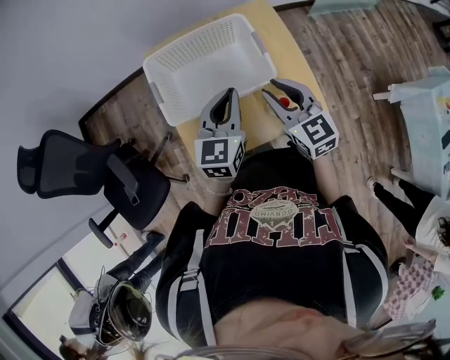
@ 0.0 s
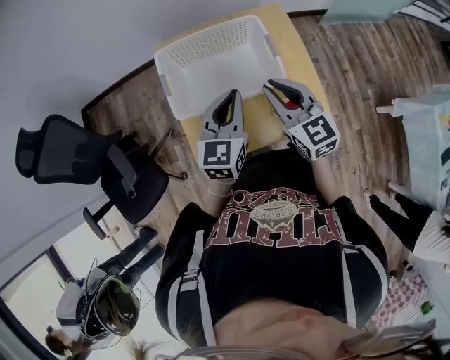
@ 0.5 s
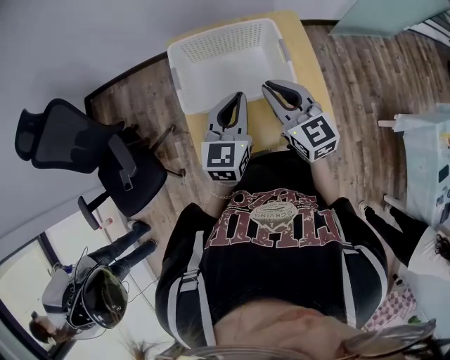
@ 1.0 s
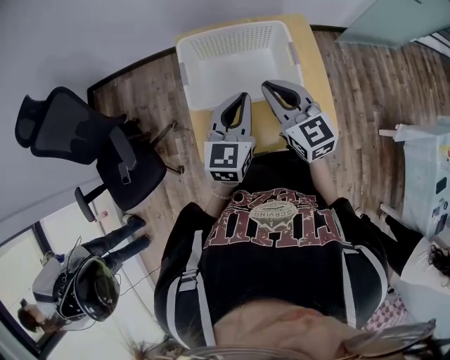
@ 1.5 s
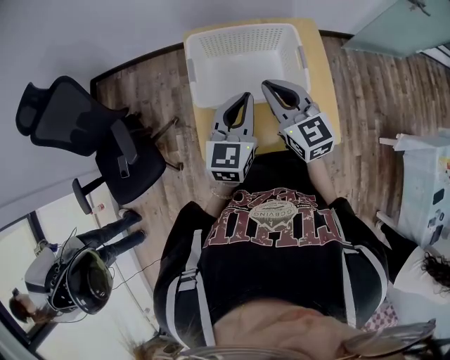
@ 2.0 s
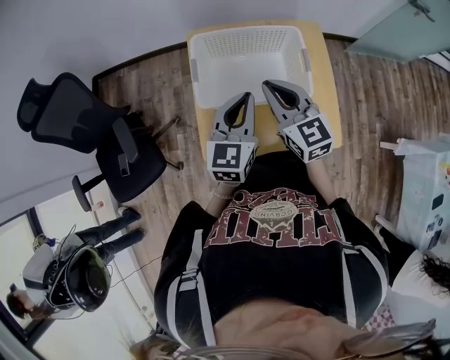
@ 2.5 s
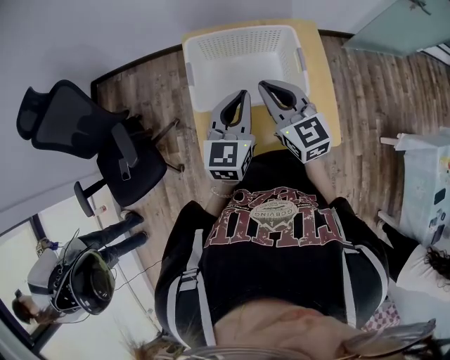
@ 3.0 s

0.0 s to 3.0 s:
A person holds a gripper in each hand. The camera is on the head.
0.0 to 1.5 s: The left gripper shifts by roughly 5 cm, while the right gripper heads to the left, covering some 10 cm, and closes its fingers.
1.5 to 3.0 s: There are only small adjustments of the grippers.

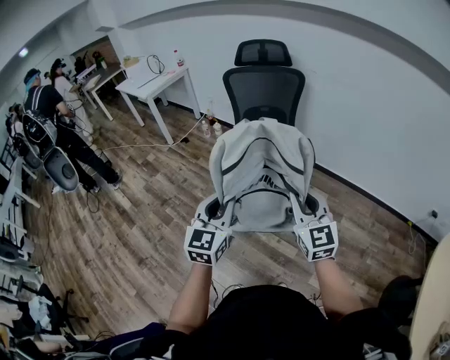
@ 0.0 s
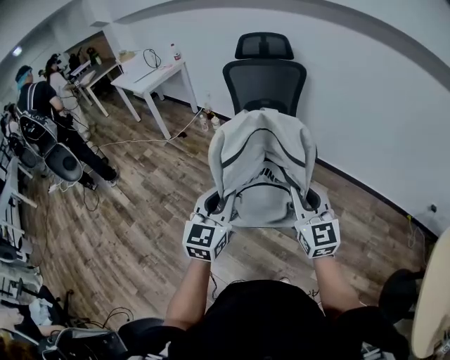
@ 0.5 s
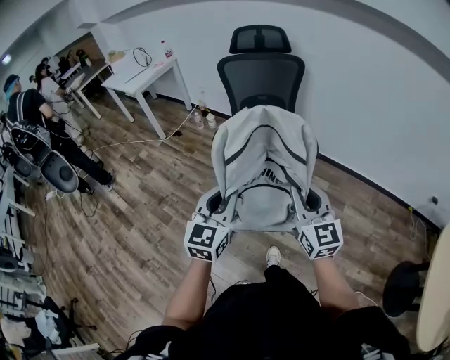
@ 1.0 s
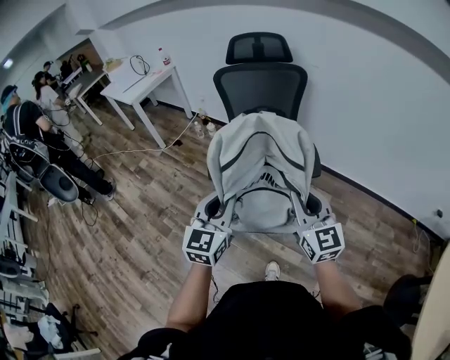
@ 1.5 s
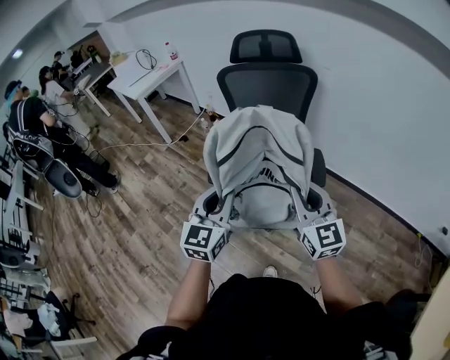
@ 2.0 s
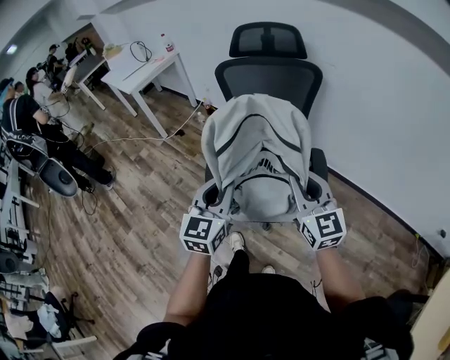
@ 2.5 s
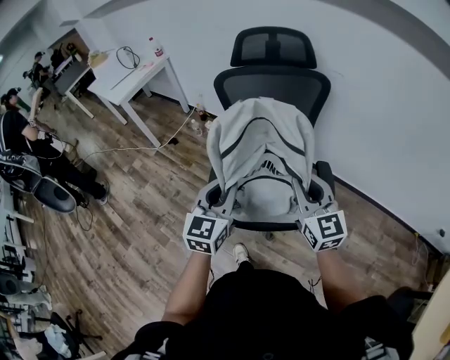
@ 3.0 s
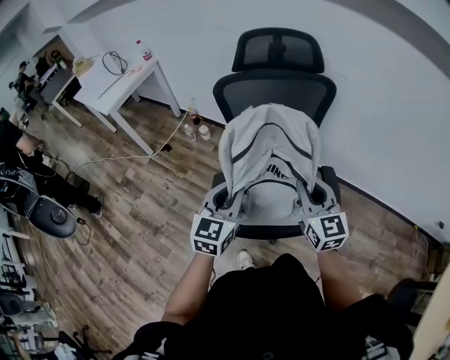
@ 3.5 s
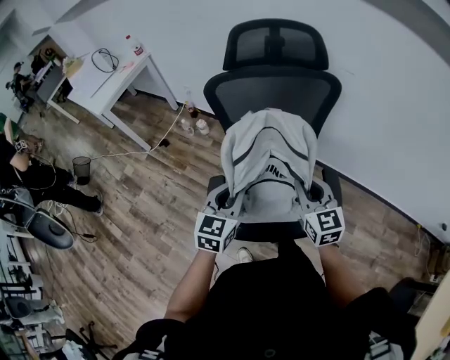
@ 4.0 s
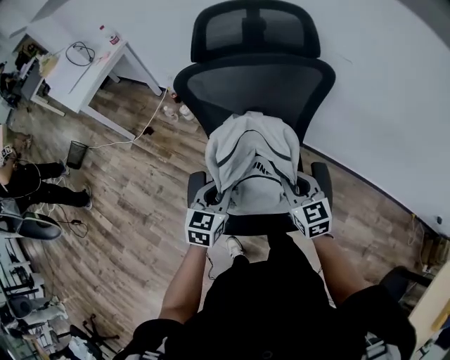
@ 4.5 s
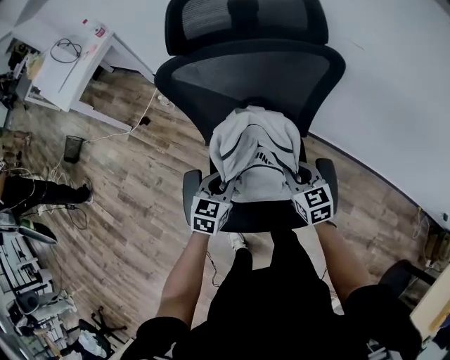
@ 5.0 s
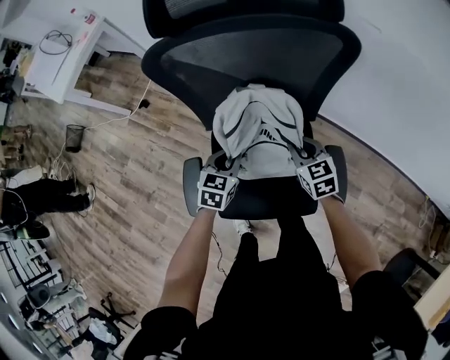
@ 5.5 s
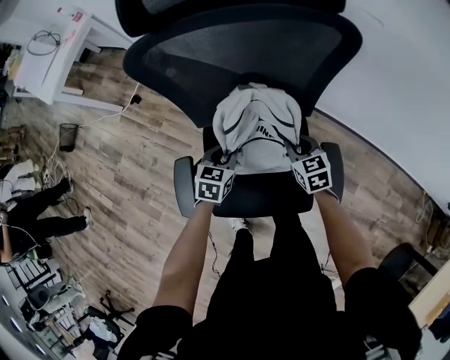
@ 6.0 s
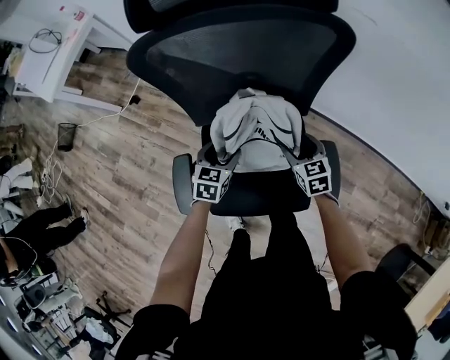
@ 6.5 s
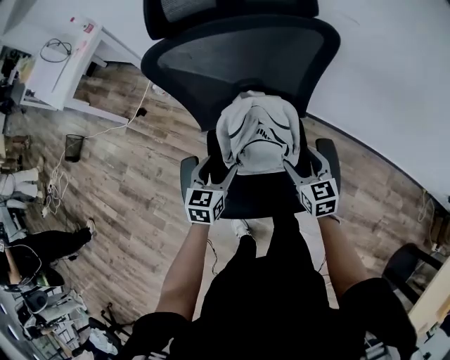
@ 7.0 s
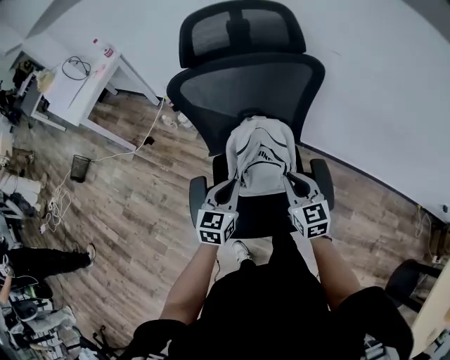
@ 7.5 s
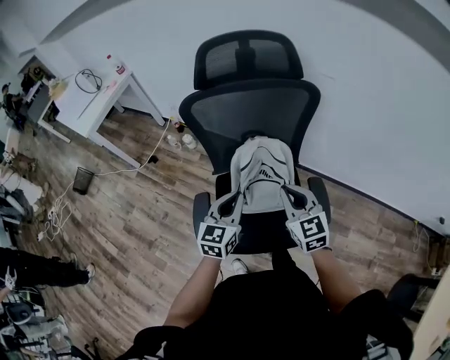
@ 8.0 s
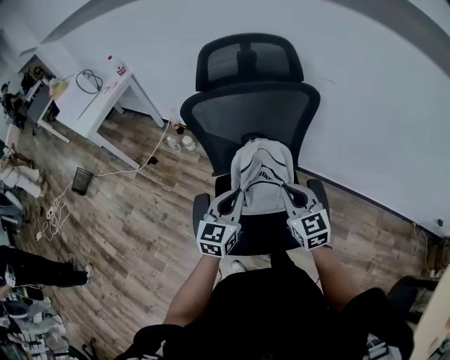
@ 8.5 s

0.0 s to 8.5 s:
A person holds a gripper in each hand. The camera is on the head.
0.0 to 2.0 s: Both grippers travel together forward, approximately 20 cm.
2.0 to 4.0 s: The grippers both shift forward by approximately 30 cm.
4.0 to 6.5 s: Both grippers travel together downward and forward, roughly 30 cm. The right gripper turns by roughly 30 degrees, and opens. The left gripper changes its angle by approximately 20 degrees, and opens up.
6.5 to 8.5 s: Both grippers travel together upward, roughly 25 cm. The right gripper changes its angle by some 20 degrees, and closes its fingers; the left gripper rotates some 30 degrees, and closes up.

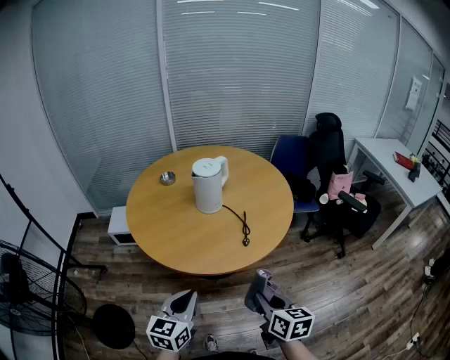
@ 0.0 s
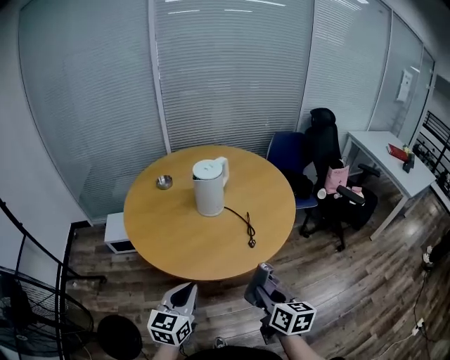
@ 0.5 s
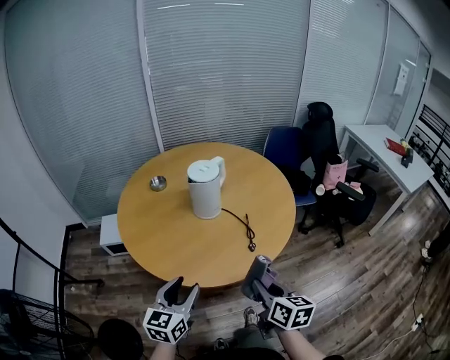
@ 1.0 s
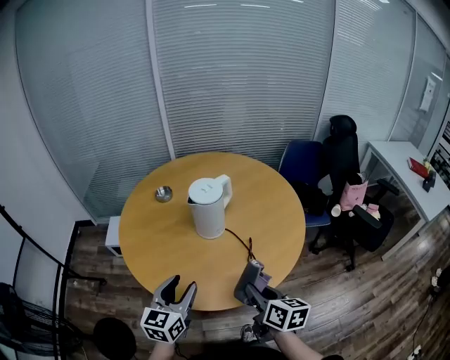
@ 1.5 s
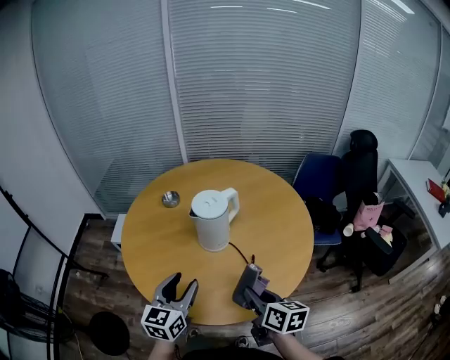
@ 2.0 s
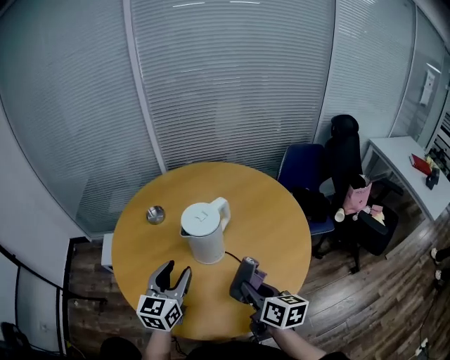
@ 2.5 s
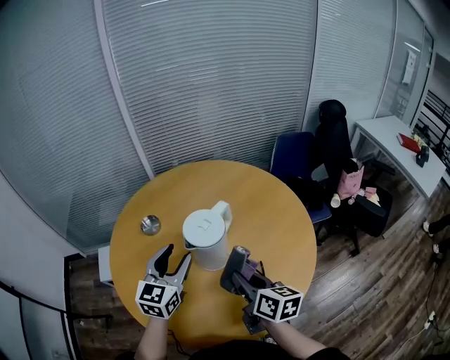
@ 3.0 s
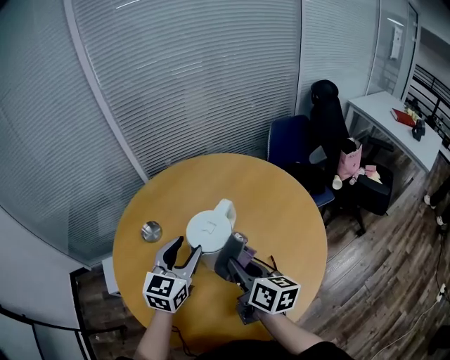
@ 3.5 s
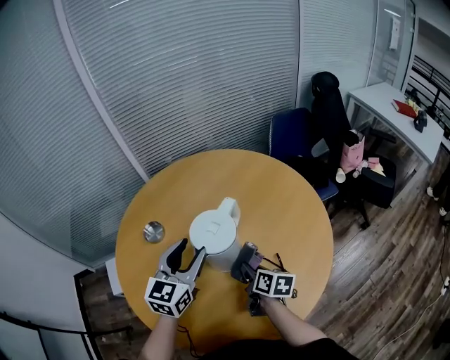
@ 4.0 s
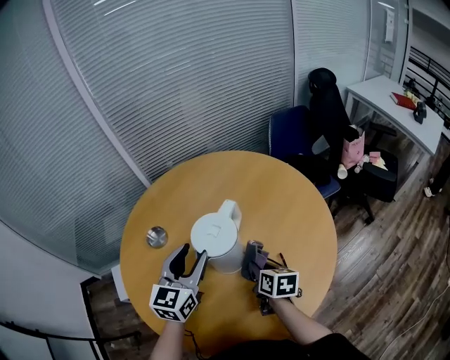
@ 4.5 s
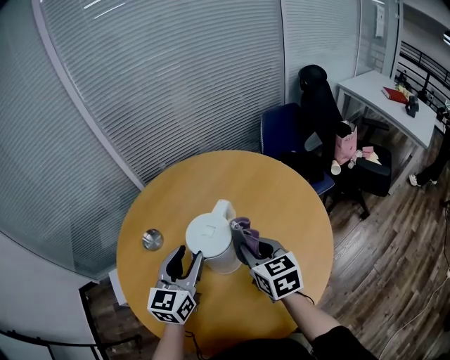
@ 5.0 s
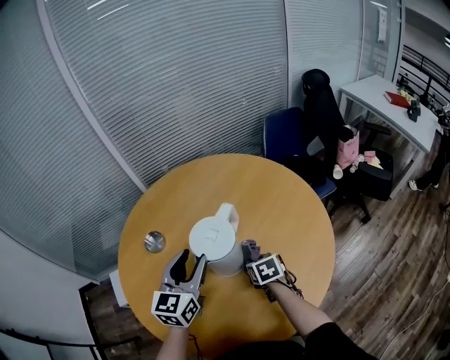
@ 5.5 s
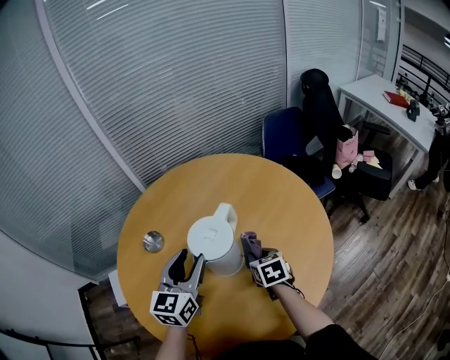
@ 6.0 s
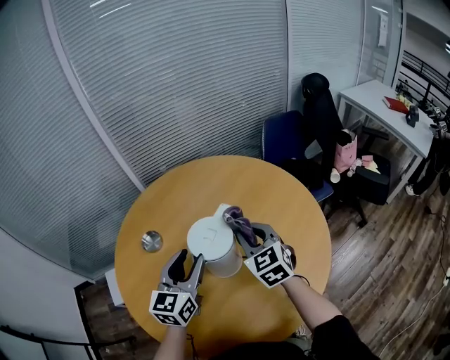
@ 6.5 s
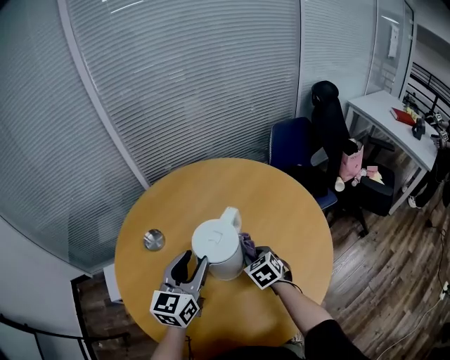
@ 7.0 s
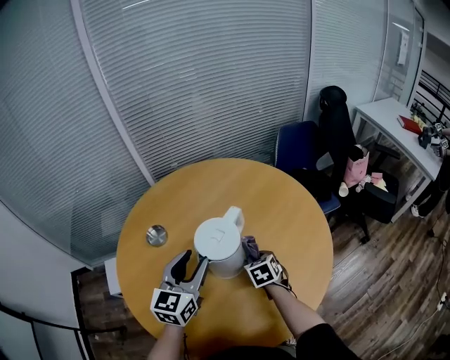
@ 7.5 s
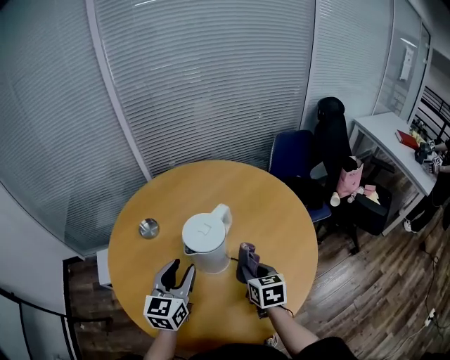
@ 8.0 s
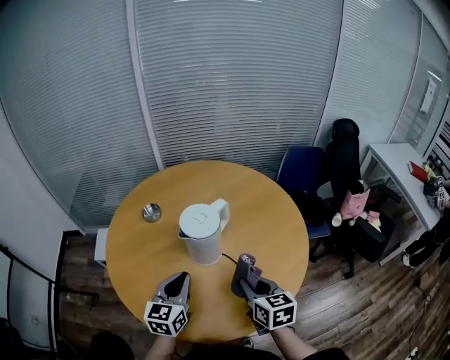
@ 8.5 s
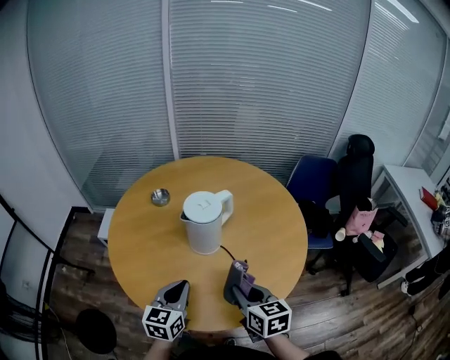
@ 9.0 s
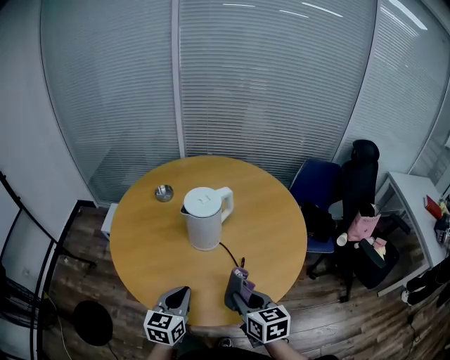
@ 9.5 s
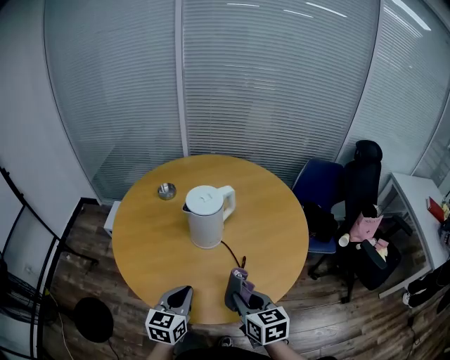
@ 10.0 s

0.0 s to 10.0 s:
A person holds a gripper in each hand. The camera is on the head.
0.0 to 2.0 s: Both grippers move forward, some 25 cm. The left gripper opens.
2.0 to 4.0 s: The left gripper shifts approximately 25 cm forward, and swivels about 30 degrees, while the right gripper moves forward, downward and to the left, about 25 cm, and turns by some 30 degrees.
4.0 to 6.0 s: The right gripper moves up and down over roughly 20 cm, changing direction 2 times, and swivels some 40 degrees.
6.0 to 8.0 s: The right gripper moves up and down over roughly 20 cm, changing direction 2 times. Meanwhile the left gripper travels backward by roughly 5 cm.
8.0 to 10.0 s: The two grippers go approximately 20 cm backward. The left gripper rotates roughly 20 degrees, and closes up; the right gripper swivels some 30 degrees.

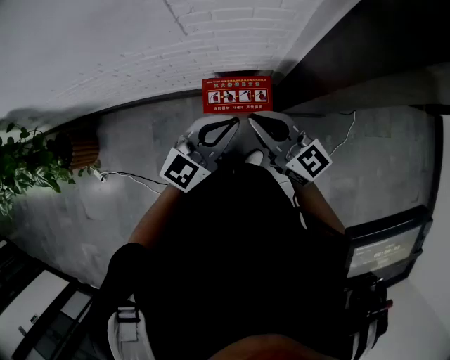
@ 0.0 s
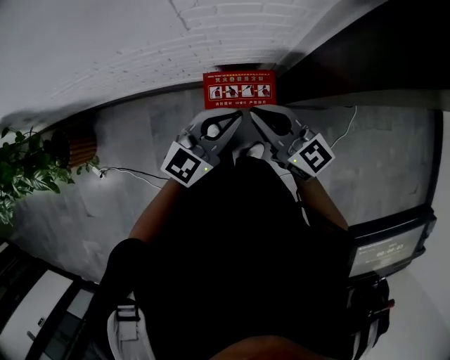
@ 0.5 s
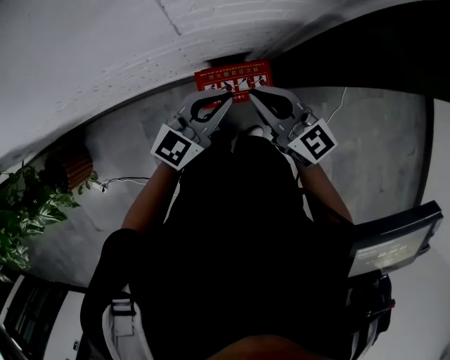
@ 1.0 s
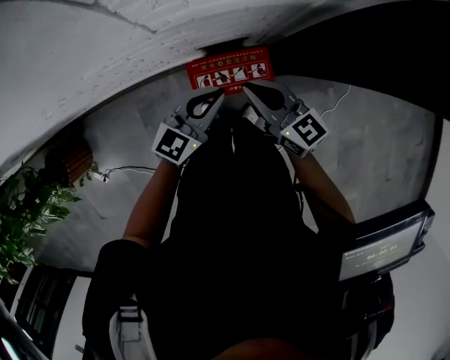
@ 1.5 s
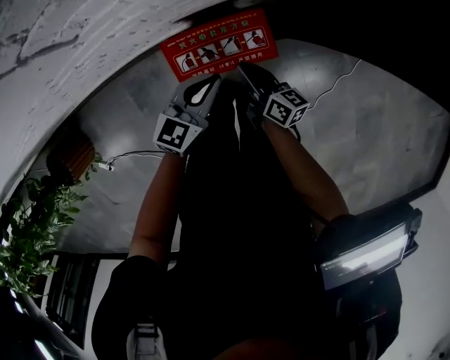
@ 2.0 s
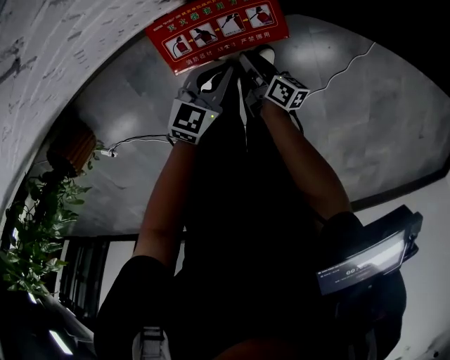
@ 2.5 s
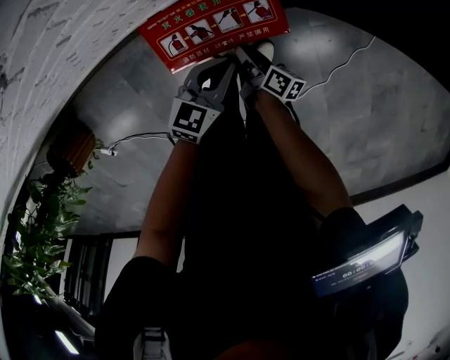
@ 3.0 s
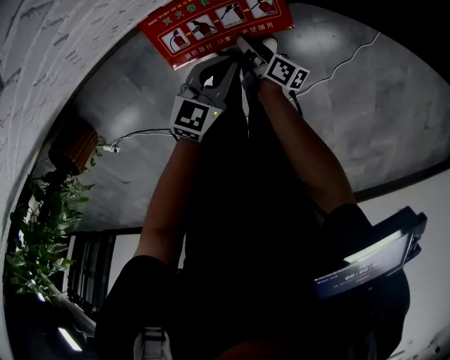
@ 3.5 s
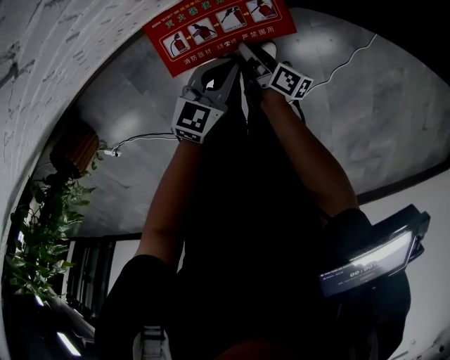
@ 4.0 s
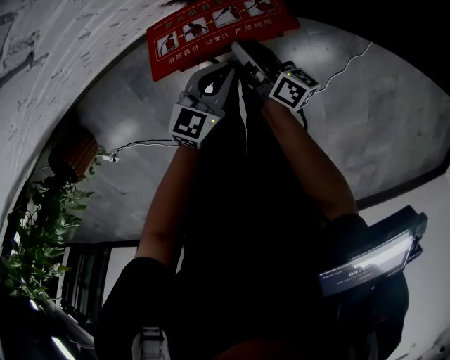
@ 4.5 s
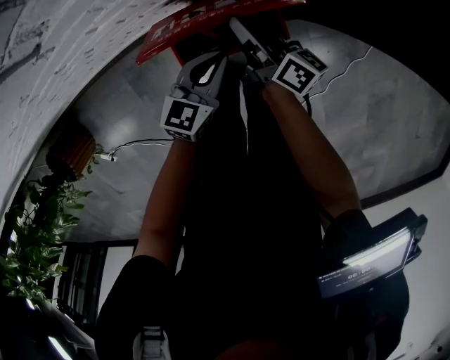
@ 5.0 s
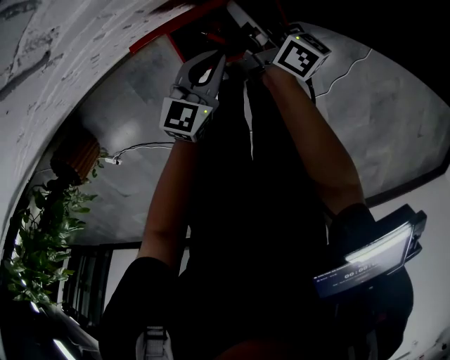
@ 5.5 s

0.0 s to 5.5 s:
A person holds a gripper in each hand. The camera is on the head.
0.0 to 2.0 s: The grippers both shift downward by approximately 35 cm. The left gripper rotates about 20 degrees. The right gripper twists some 50 degrees clockwise, seen from behind.
2.0 to 3.5 s: The two grippers go some 15 cm downward. The right gripper changes its angle by some 30 degrees, and opens up.
3.5 to 5.5 s: The left gripper shifts about 10 cm forward, upward and to the left. Meanwhile the right gripper travels upward and forward by about 25 cm, and swivels approximately 30 degrees.
